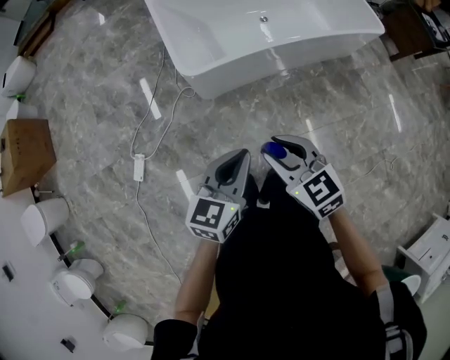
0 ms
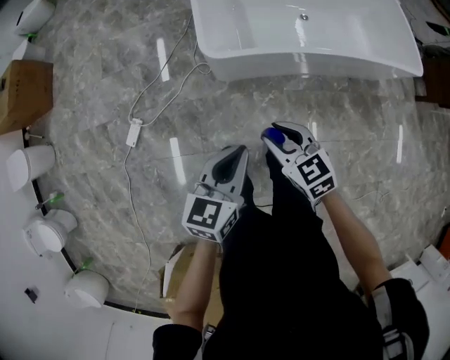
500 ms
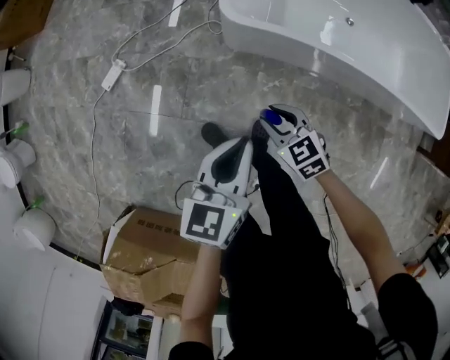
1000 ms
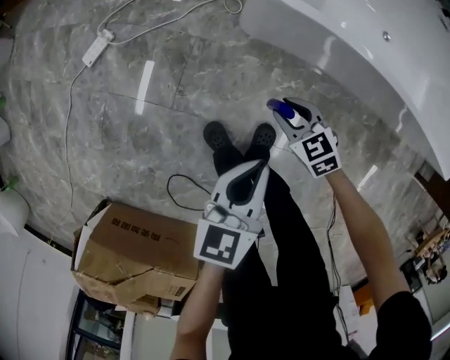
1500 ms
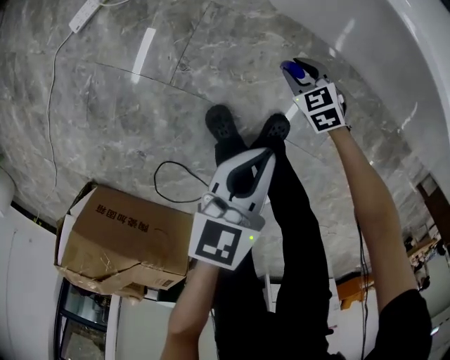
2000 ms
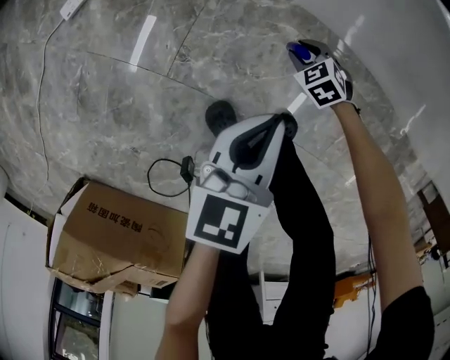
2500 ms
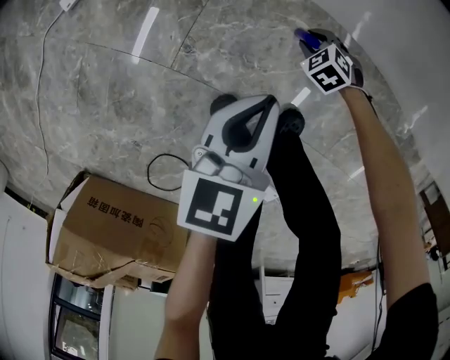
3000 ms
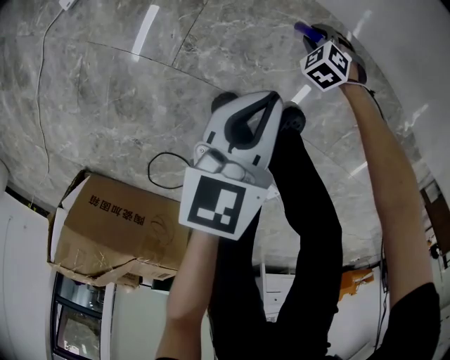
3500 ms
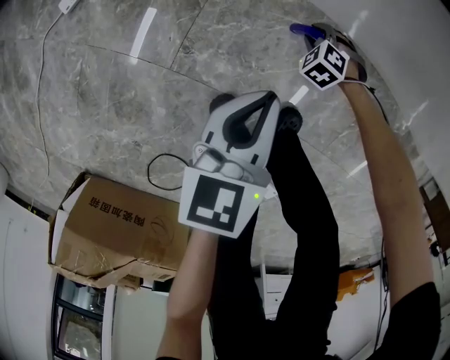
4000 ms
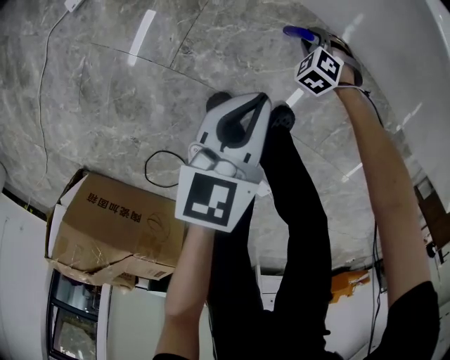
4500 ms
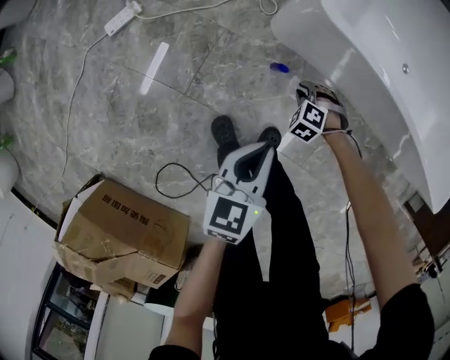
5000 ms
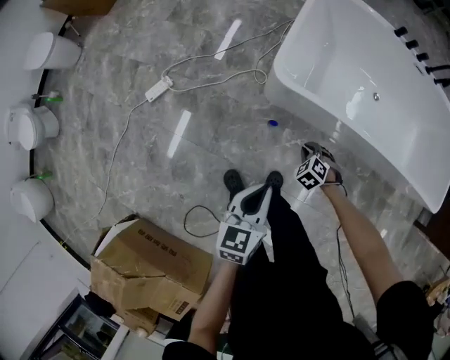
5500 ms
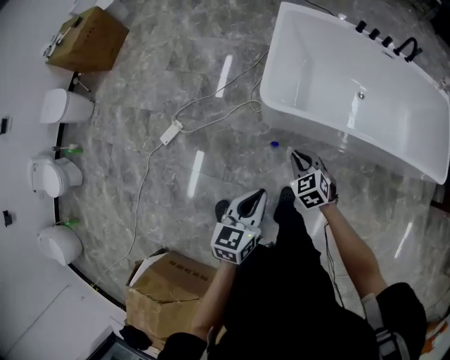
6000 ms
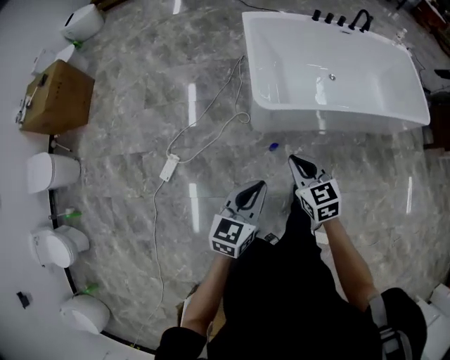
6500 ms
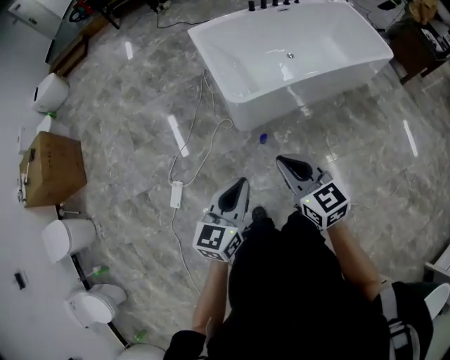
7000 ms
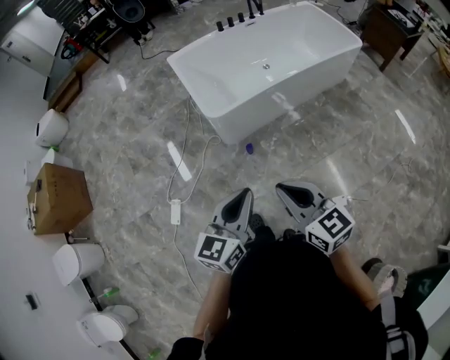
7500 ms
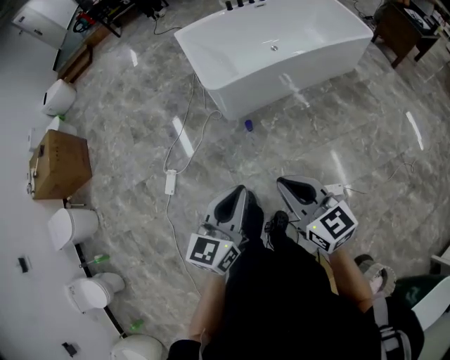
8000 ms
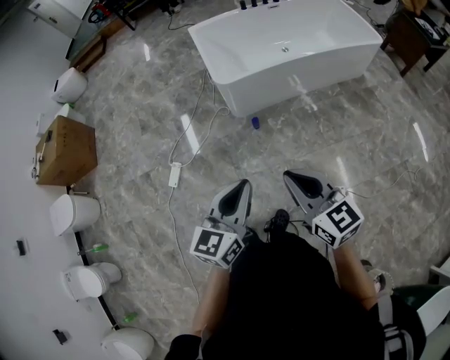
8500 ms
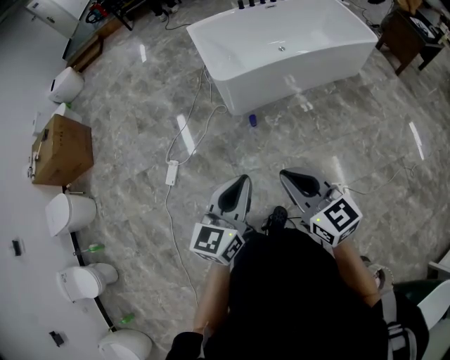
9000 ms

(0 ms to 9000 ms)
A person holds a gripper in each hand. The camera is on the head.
0 ms - 2000 ms: Both grippers travel together downward, approximately 60 cm. The right gripper changes its angle by roughly 50 degrees. The left gripper changes its angle by some 50 degrees.
2000 ms - 4500 ms: The left gripper ends up some 10 cm from where it was. The right gripper heads downward, covering approximately 10 cm, and turns by roughly 40 degrees.
4500 ms - 7000 ms: The right gripper shifts about 80 cm upward, tilts its fingers about 50 degrees upward, and closes; the left gripper shifts roughly 50 cm upward, and turns by roughly 50 degrees.
7000 ms - 9000 ms: The left gripper is displaced backward and to the right by roughly 30 cm; the right gripper moves backward, roughly 30 cm.

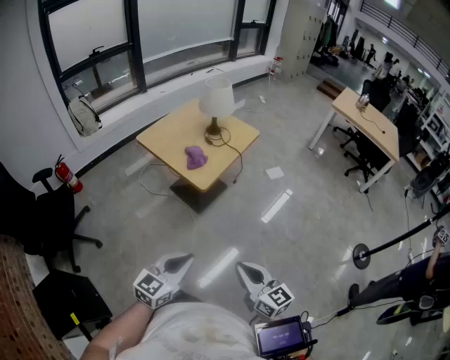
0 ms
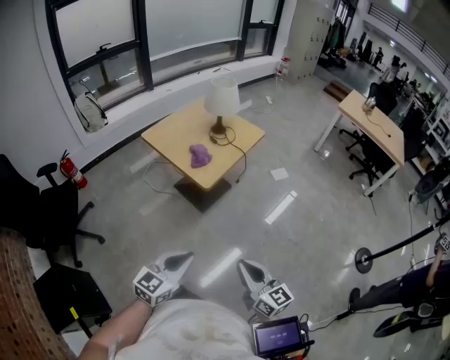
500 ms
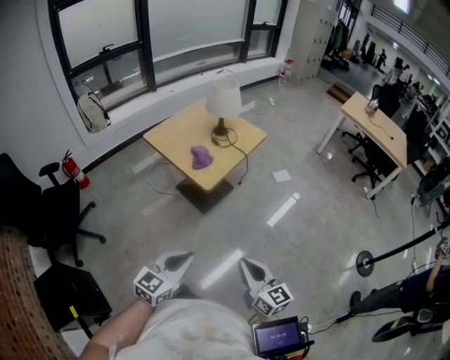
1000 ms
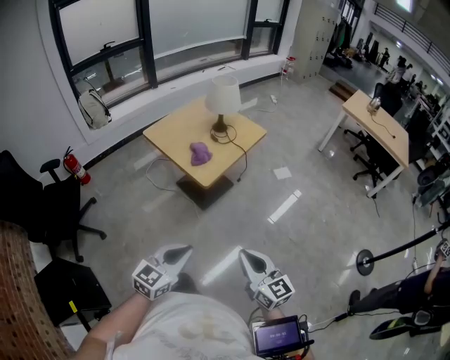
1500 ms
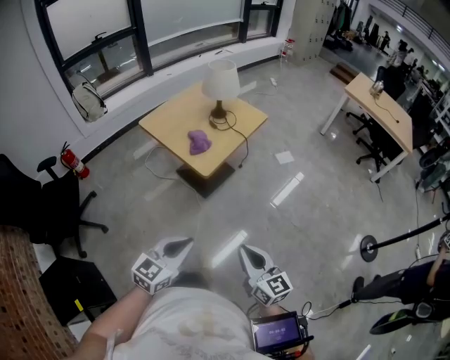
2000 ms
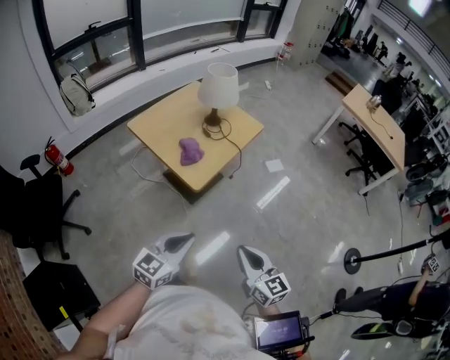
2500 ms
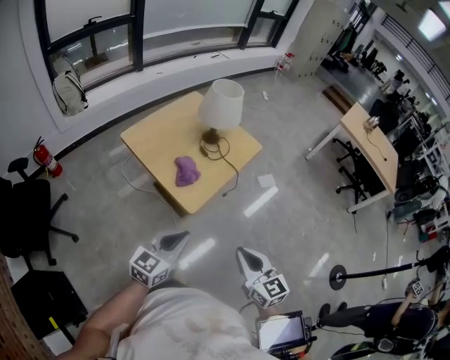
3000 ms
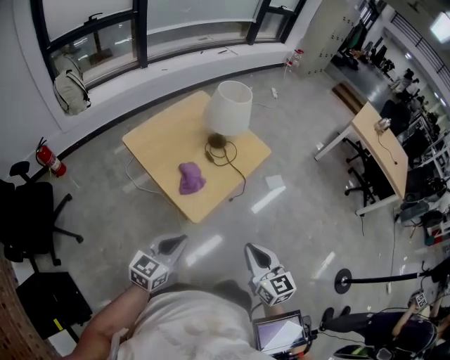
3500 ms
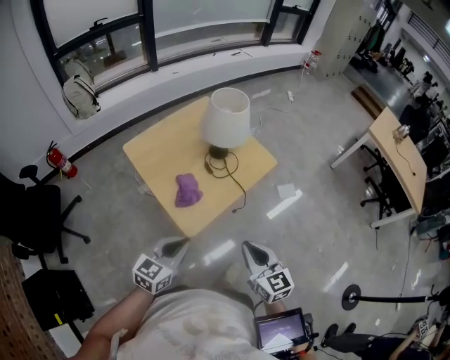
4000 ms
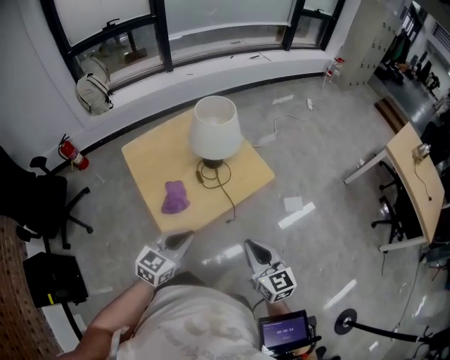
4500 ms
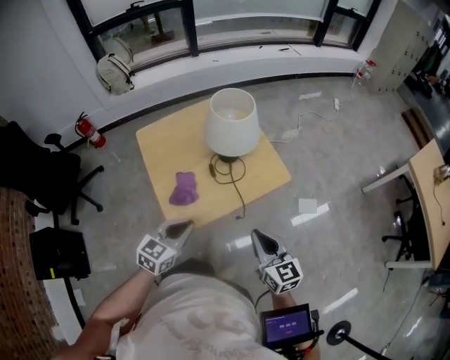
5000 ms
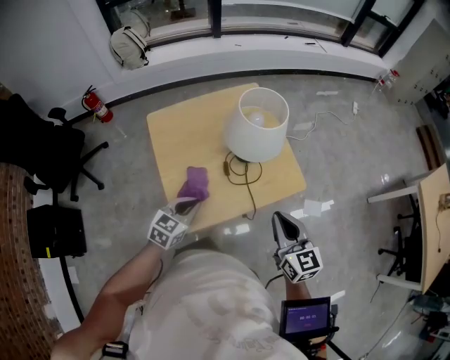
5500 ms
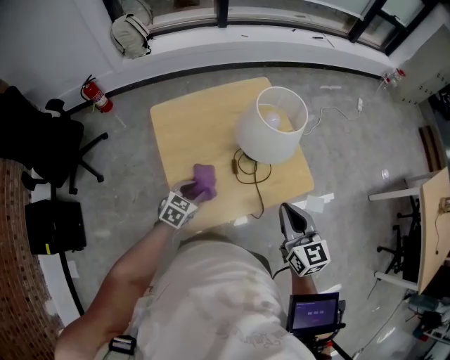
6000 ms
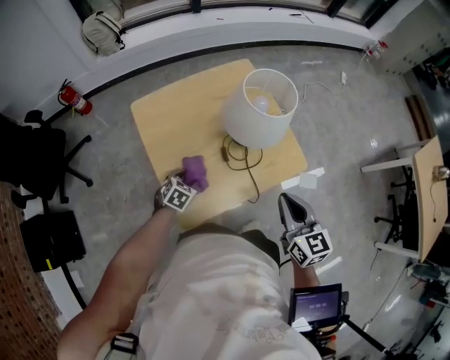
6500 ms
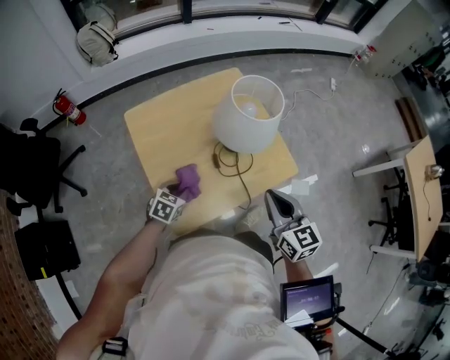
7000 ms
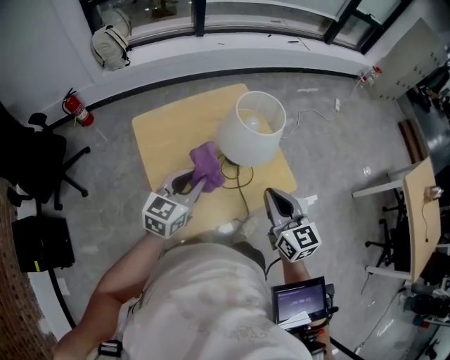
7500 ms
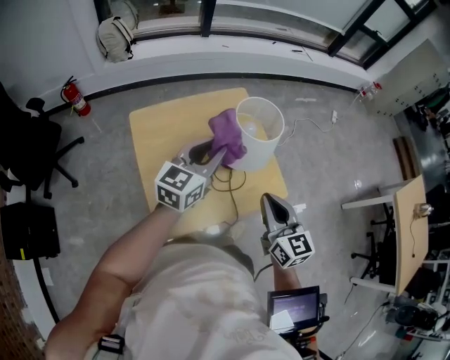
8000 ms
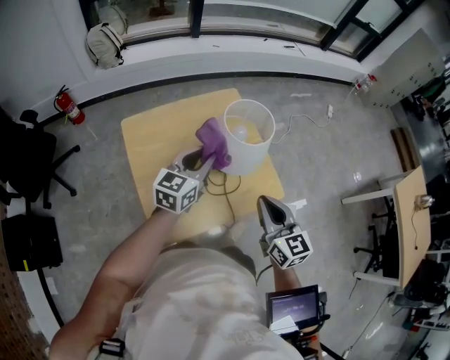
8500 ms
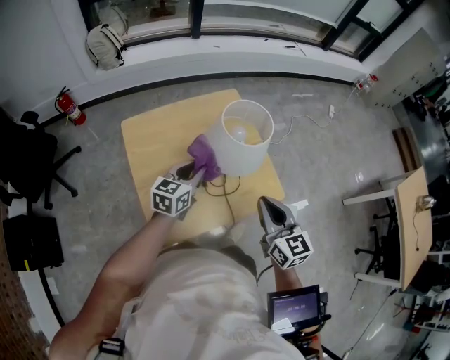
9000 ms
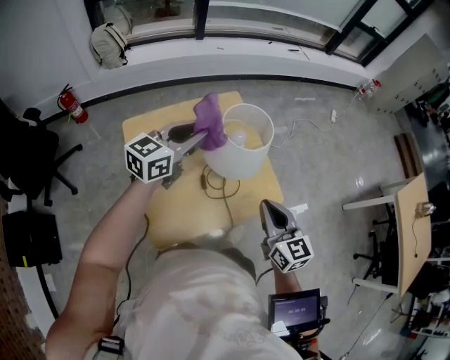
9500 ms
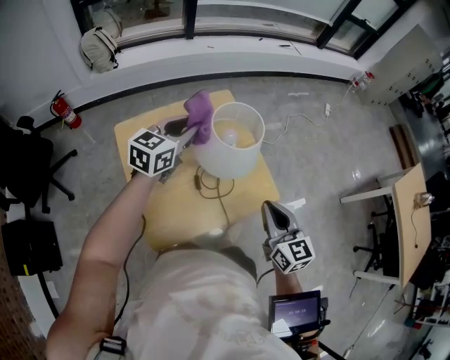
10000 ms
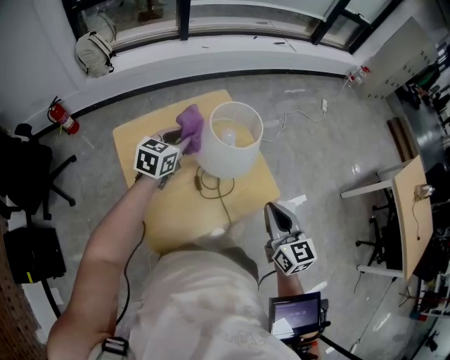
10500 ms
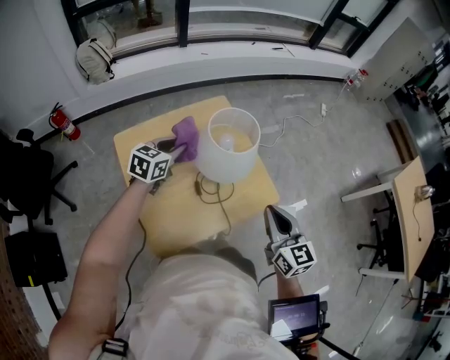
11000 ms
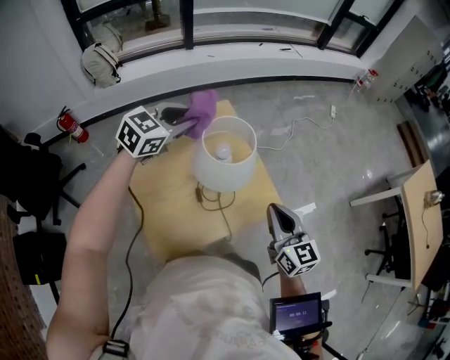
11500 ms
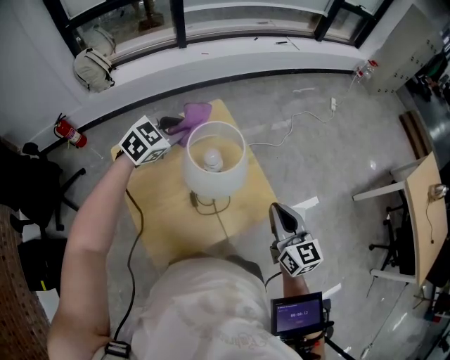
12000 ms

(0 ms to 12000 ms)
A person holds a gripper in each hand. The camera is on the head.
0 ms - 2000 ms: The right gripper changes place by roughly 5 cm.
2000 ms - 4000 ms: Both grippers move forward, about 35 cm.
4000 ms - 6000 ms: The left gripper goes roughly 30 cm forward and downward, swivels some 30 degrees, and opens. Meanwhile the right gripper heads forward, covering roughly 25 cm.
6000 ms - 8000 ms: The left gripper is displaced upward and forward by some 30 cm, tips its fingers upward by roughly 40 degrees, and opens, then closes again; the right gripper ends up approximately 5 cm from where it was.
8000 ms - 10000 ms: The left gripper is displaced forward by about 10 cm, and moves approximately 15 cm downward and comes back, while the right gripper shifts approximately 5 cm to the right.
10000 ms - 12000 ms: The right gripper travels forward by approximately 5 cm, while the left gripper goes up and down, approximately 15 cm each way, reversing 2 times, and turns by roughly 40 degrees.

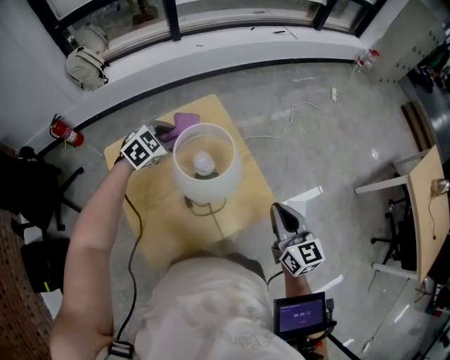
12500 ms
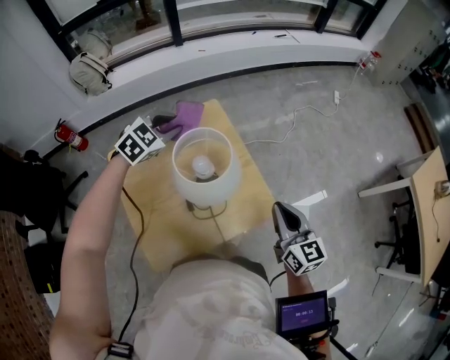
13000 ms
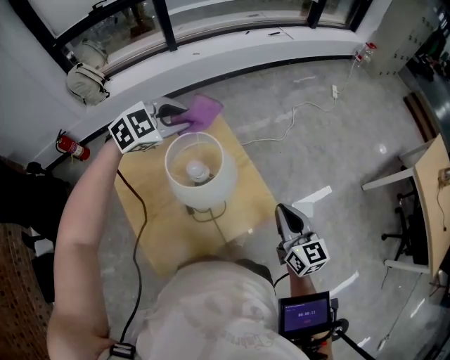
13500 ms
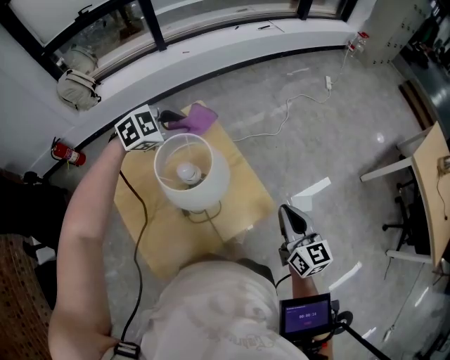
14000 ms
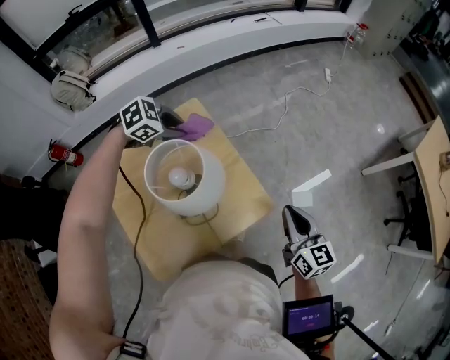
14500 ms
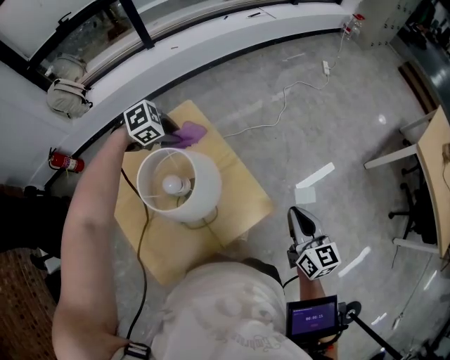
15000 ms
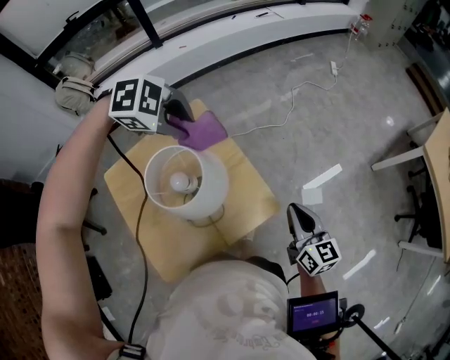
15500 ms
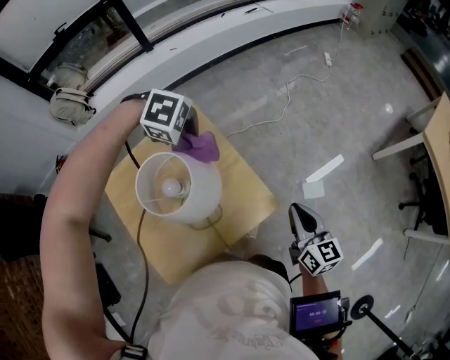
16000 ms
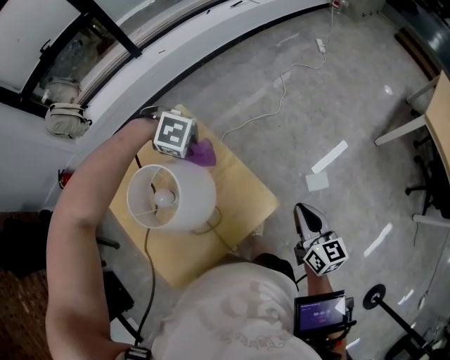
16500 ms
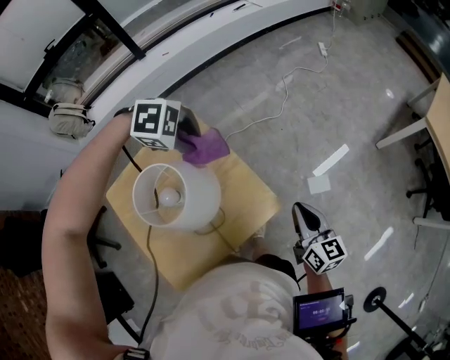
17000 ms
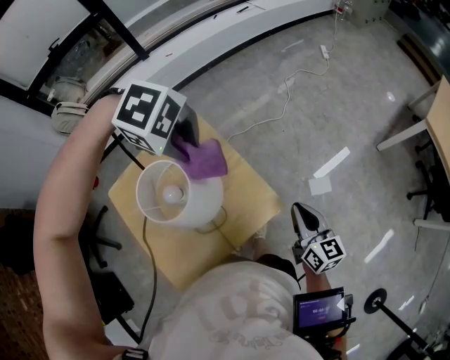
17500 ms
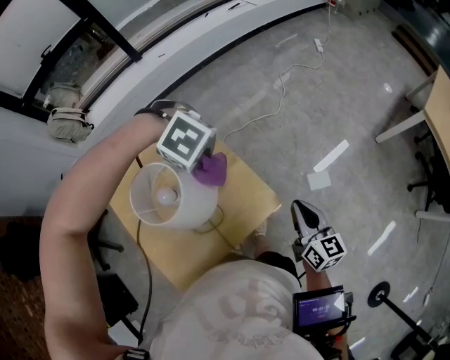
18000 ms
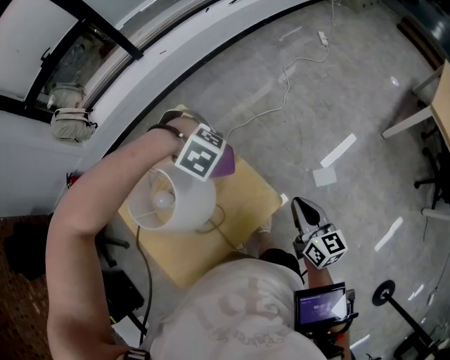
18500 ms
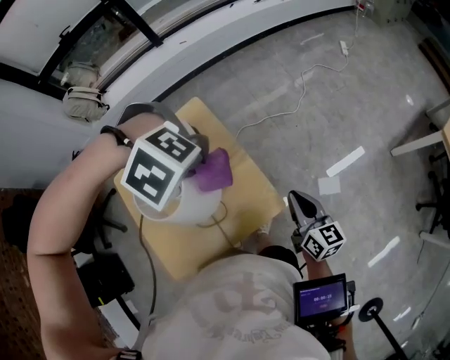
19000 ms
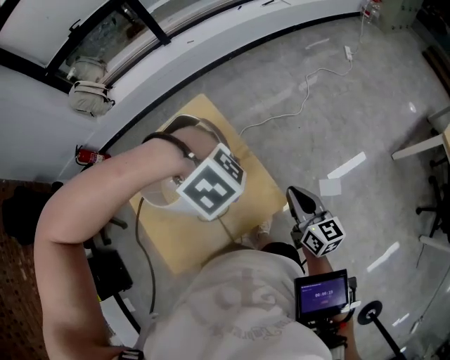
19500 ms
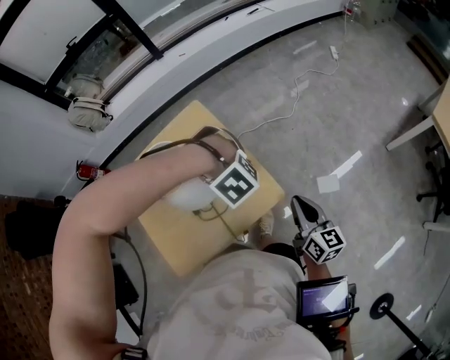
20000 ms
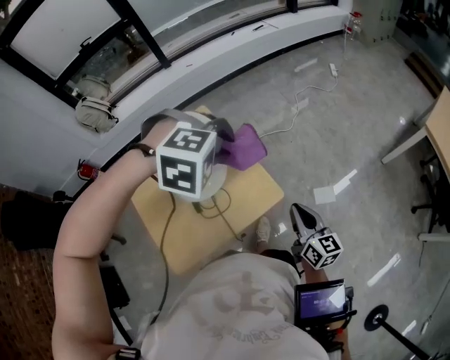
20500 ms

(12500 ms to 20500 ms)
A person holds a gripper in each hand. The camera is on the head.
12500 ms - 14500 ms: The left gripper goes upward and returns, approximately 15 cm each way, and turns by roughly 30 degrees. Meanwhile the right gripper moves about 10 cm.
14500 ms - 16500 ms: The left gripper moves up and down over roughly 15 cm, changing direction 2 times, and turns by approximately 60 degrees. Meanwhile the right gripper changes place by some 5 cm.
16500 ms - 18500 ms: The left gripper moves some 20 cm upward and comes back.
18500 ms - 20500 ms: The right gripper changes place by about 10 cm. The left gripper moves up and down over roughly 20 cm, changing direction 2 times, and swivels roughly 40 degrees.
